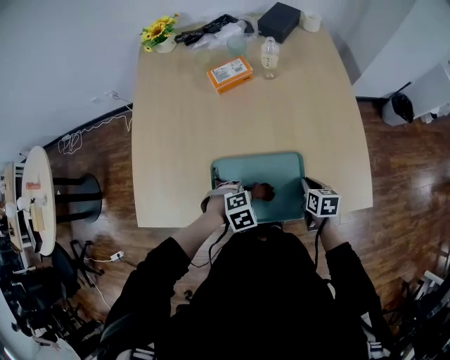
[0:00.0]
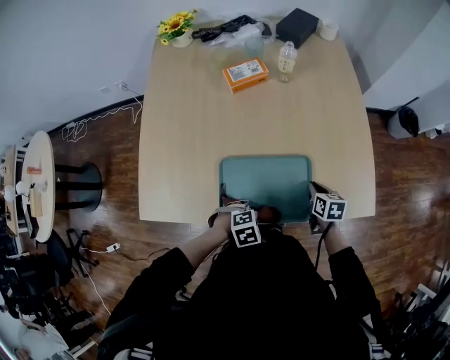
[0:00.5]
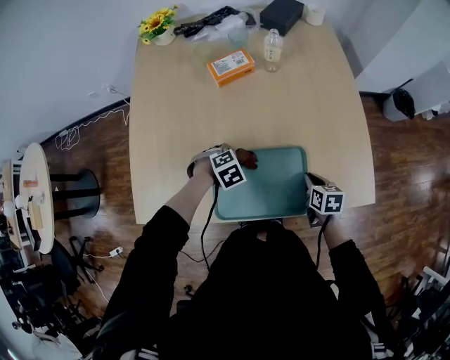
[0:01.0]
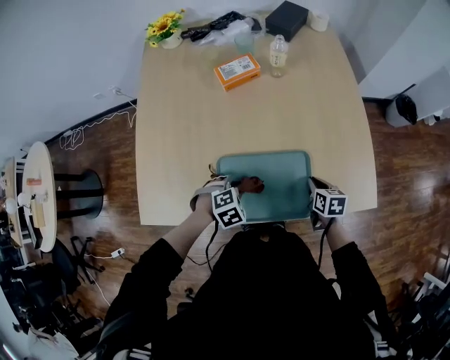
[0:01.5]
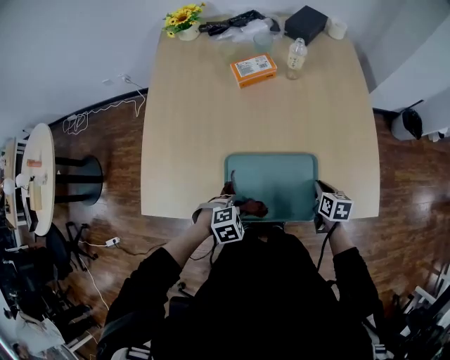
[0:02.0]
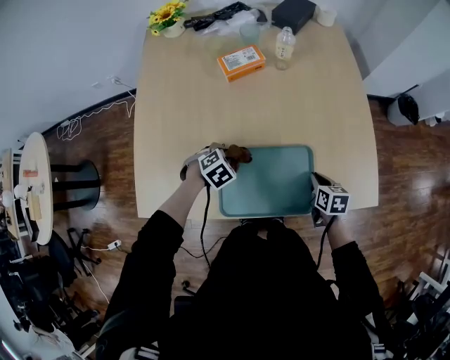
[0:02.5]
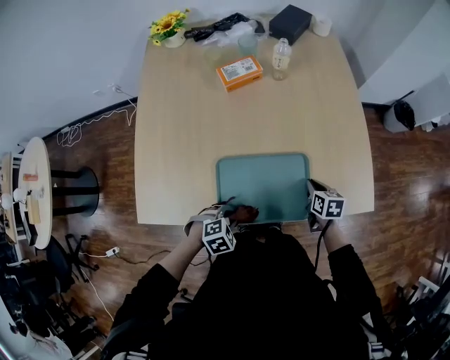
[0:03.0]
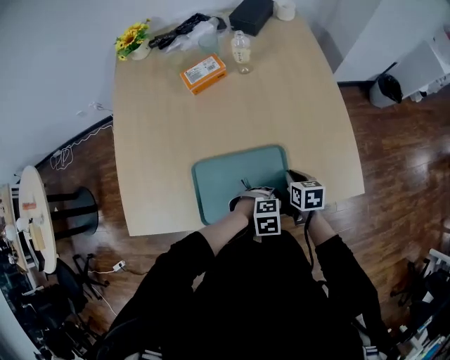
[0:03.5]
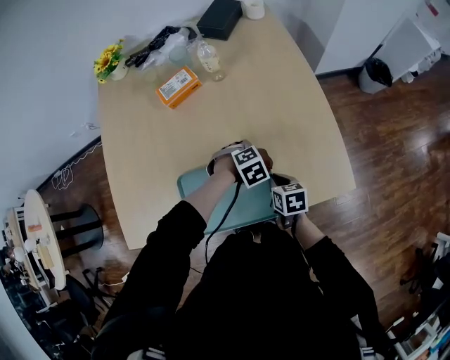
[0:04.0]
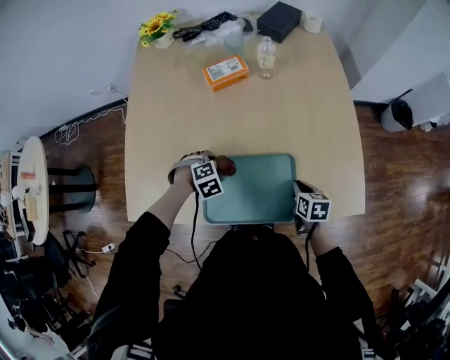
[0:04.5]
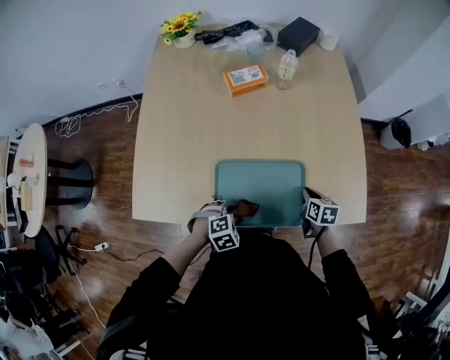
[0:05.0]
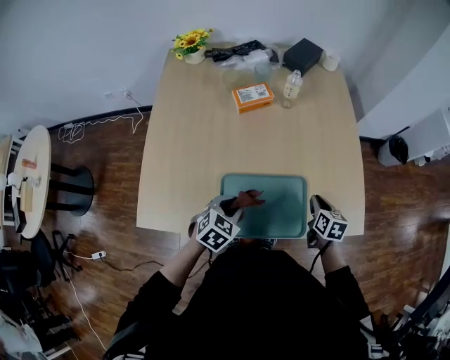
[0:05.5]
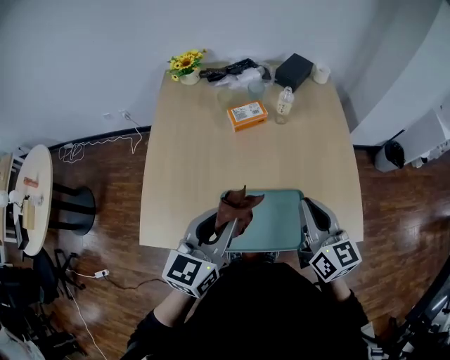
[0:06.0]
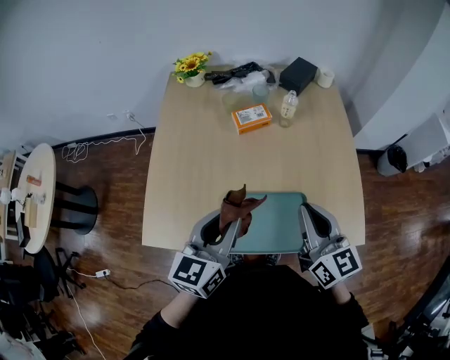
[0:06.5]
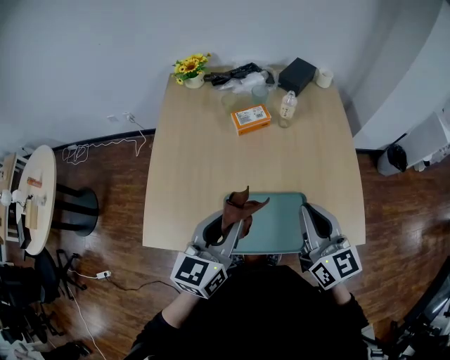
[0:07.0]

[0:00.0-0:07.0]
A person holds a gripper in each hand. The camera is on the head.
0:00.0 to 0:02.0: The left gripper moves about 10 cm.
0:02.0 to 0:03.5: The left gripper shifts by roughly 20 cm, and rotates roughly 20 degrees.
0:03.5 to 0:05.0: The left gripper ends up approximately 20 cm from where it was, and changes its angle by roughly 30 degrees.
0:05.0 to 0:07.0: Both grippers move upward, approximately 35 cm. The right gripper points its fingers roughly 50 degrees further upward. The left gripper tilts its fingers approximately 60 degrees upward.

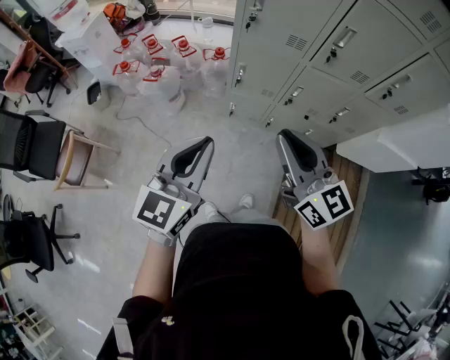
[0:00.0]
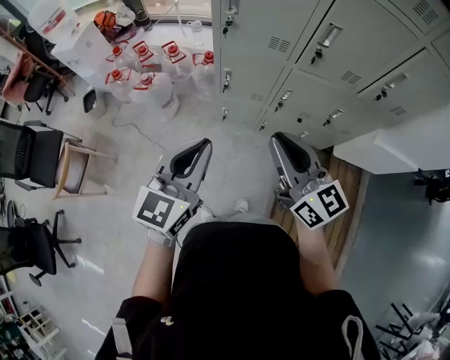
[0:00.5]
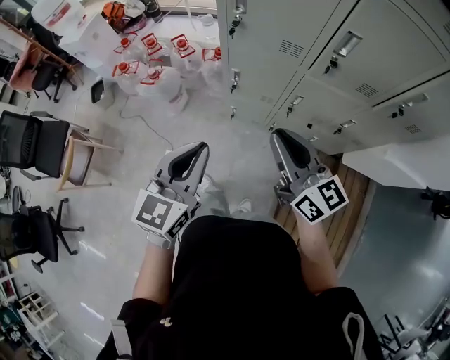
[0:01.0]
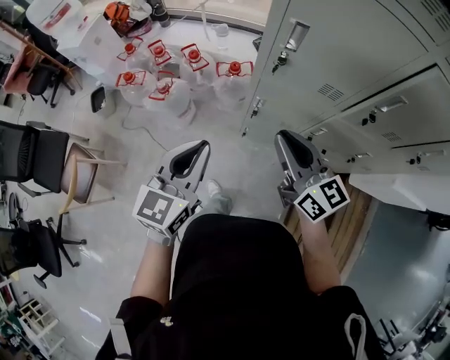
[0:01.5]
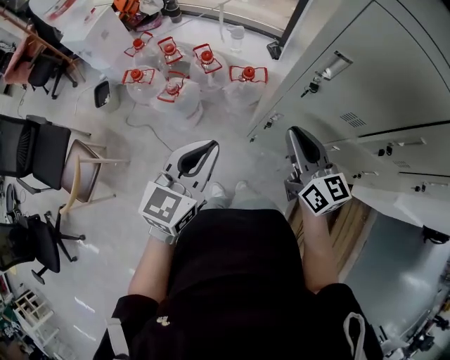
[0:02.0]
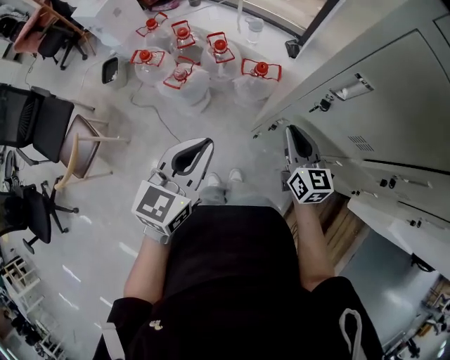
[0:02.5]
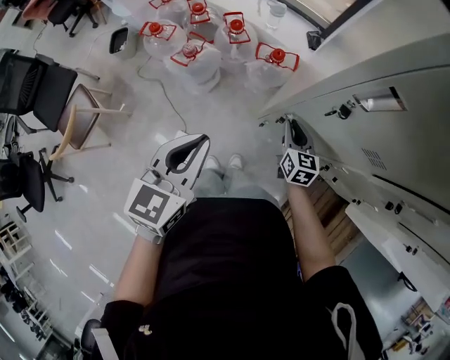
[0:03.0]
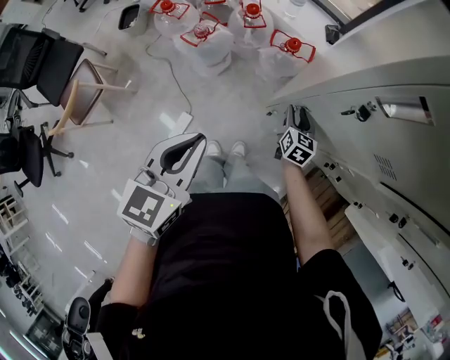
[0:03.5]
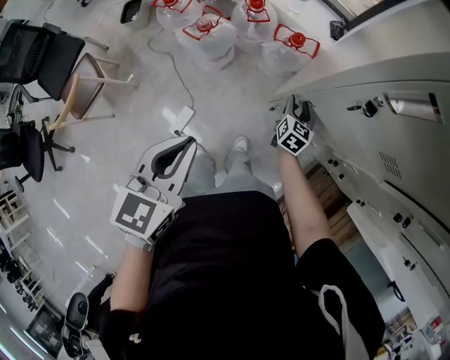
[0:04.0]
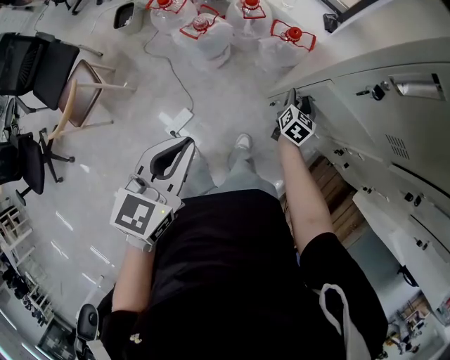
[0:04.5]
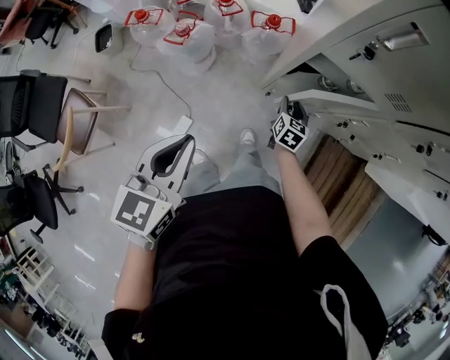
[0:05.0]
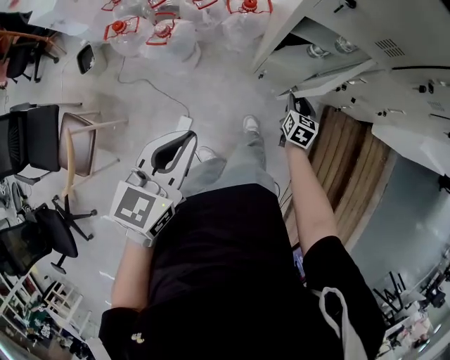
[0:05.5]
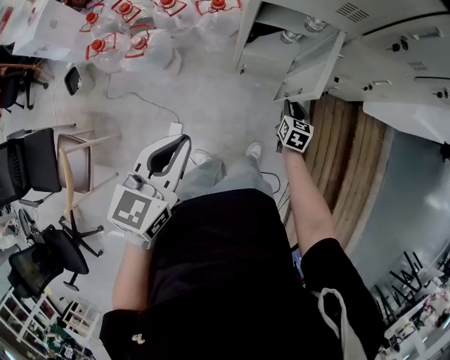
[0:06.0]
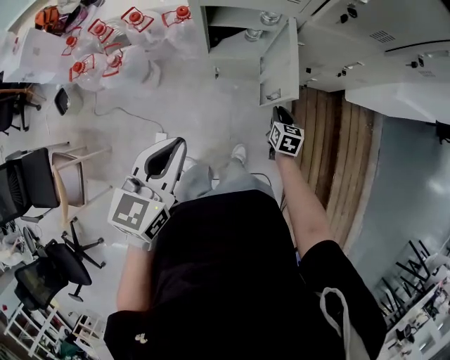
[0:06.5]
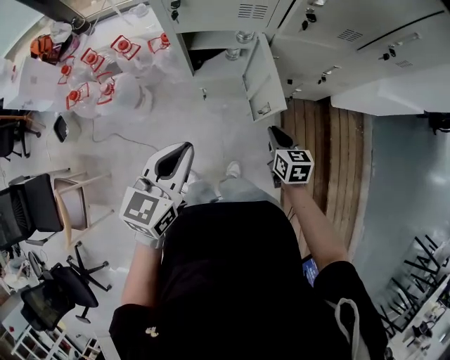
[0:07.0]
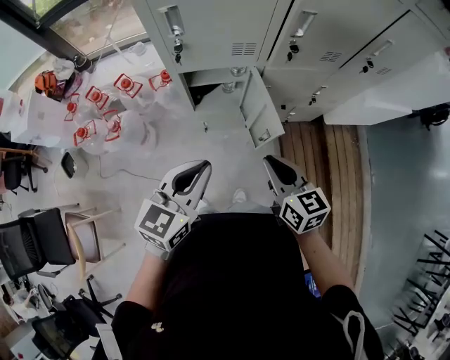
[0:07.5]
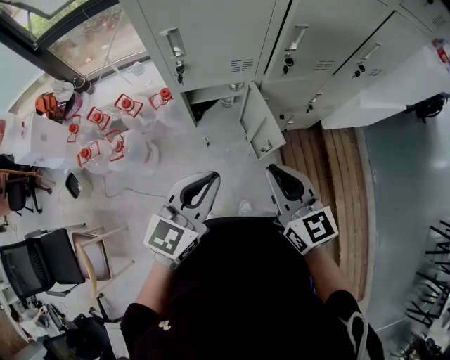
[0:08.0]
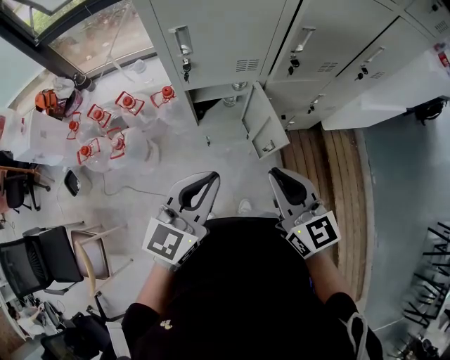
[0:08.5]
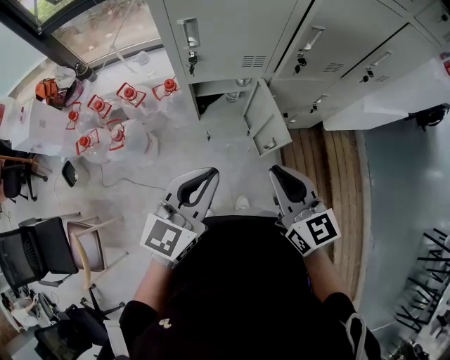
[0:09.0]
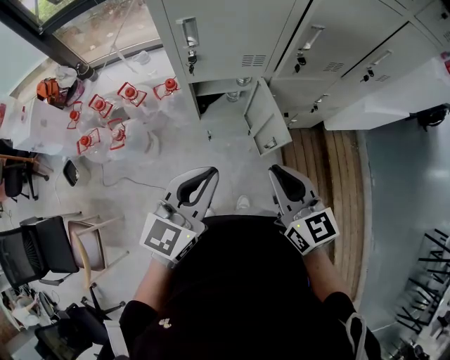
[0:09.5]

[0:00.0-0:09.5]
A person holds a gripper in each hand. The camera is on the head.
0:00.0 to 0:02.0: Both grippers travel together forward, some 30 cm.
0:02.0 to 0:04.0: The right gripper shifts about 35 cm downward, turns by approximately 30 degrees, and opens its fingers; the left gripper shifts roughly 5 cm downward, and rotates roughly 30 degrees.
0:04.0 to 0:05.5: The right gripper goes approximately 20 cm backward. Meanwhile the left gripper travels backward by approximately 10 cm, and changes its angle by approximately 30 degrees.
0:05.5 to 0:07.5: The right gripper travels upward and to the right by some 35 cm, swivels approximately 20 degrees, and closes up. The left gripper goes roughly 25 cm to the right, and rotates roughly 20 degrees.
0:07.5 to 0:09.5: The left gripper is displaced upward by approximately 5 cm; the right gripper heads upward, covering approximately 10 cm.

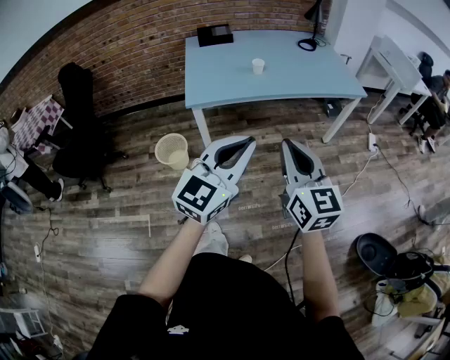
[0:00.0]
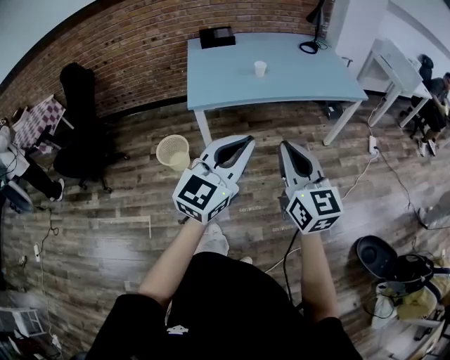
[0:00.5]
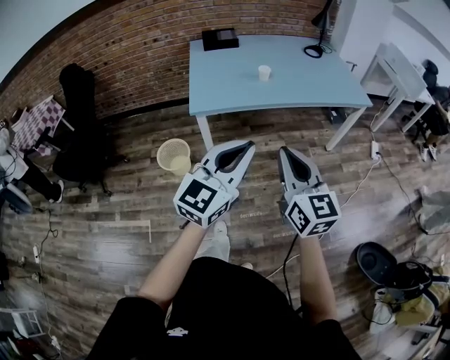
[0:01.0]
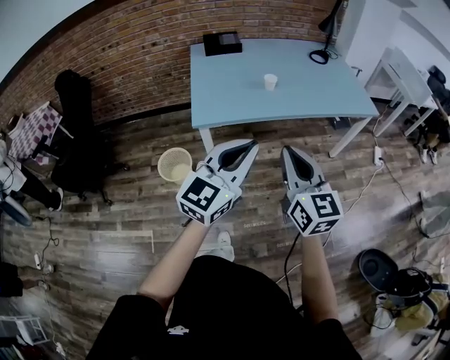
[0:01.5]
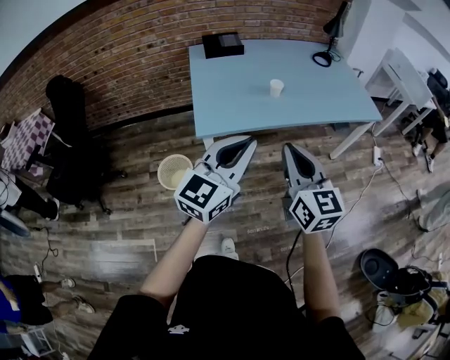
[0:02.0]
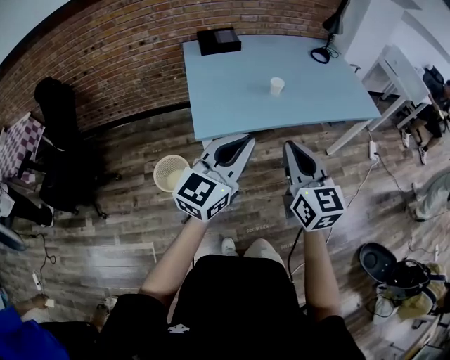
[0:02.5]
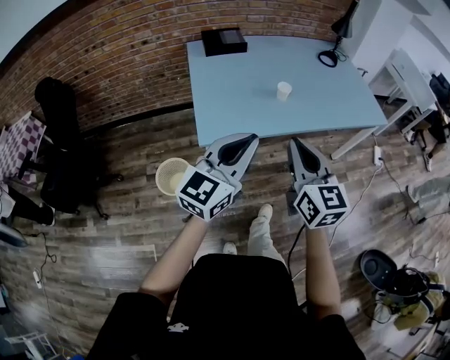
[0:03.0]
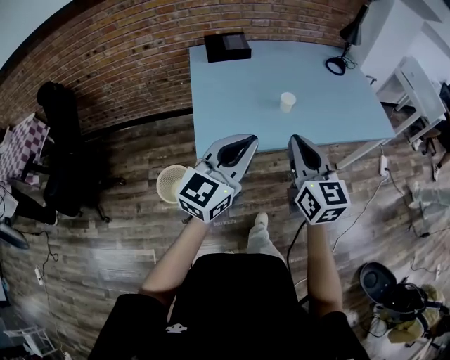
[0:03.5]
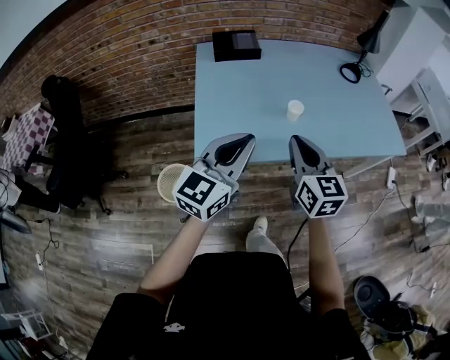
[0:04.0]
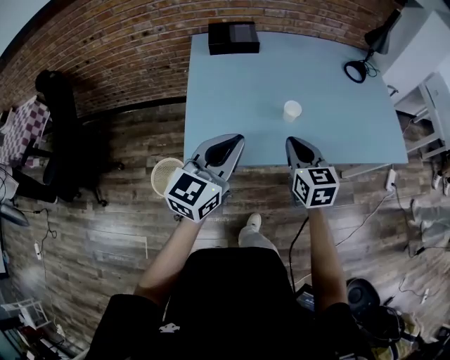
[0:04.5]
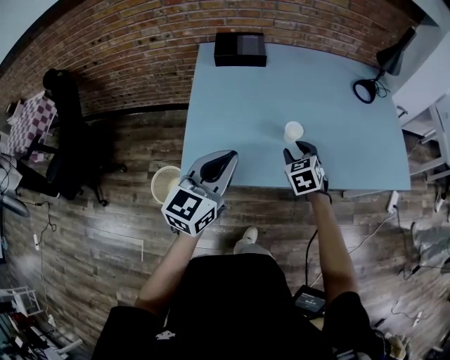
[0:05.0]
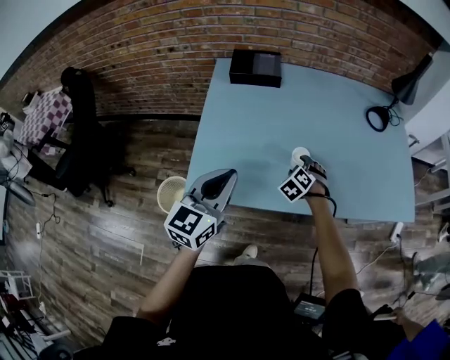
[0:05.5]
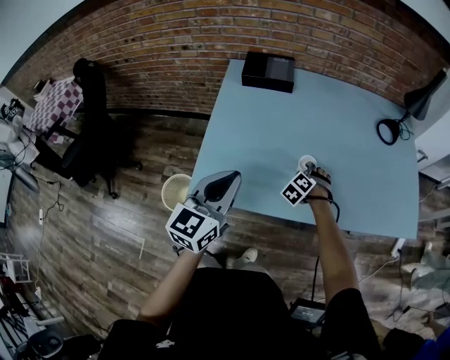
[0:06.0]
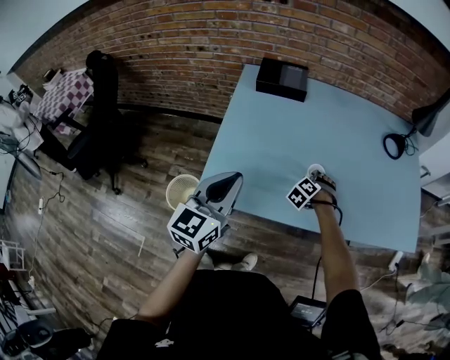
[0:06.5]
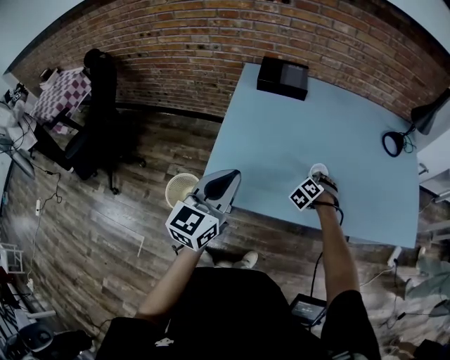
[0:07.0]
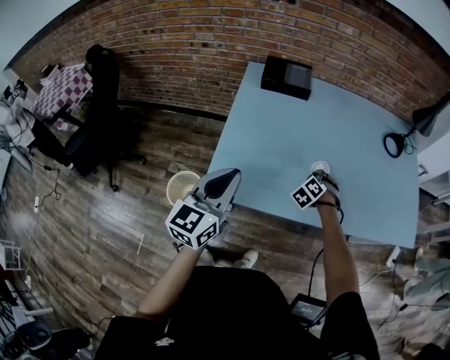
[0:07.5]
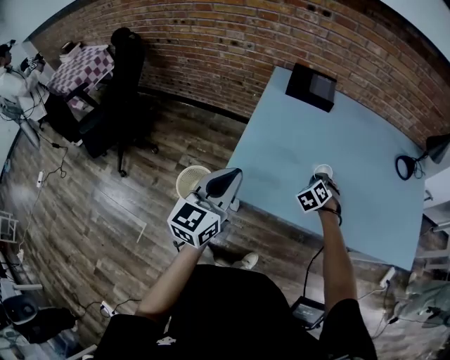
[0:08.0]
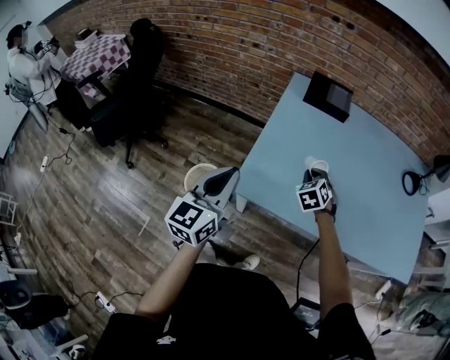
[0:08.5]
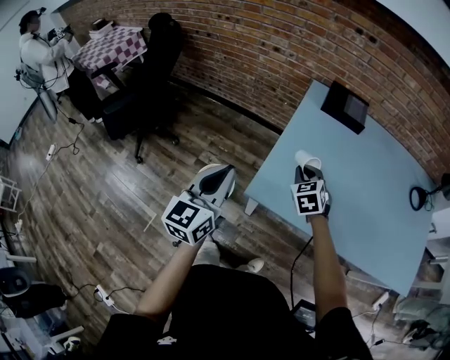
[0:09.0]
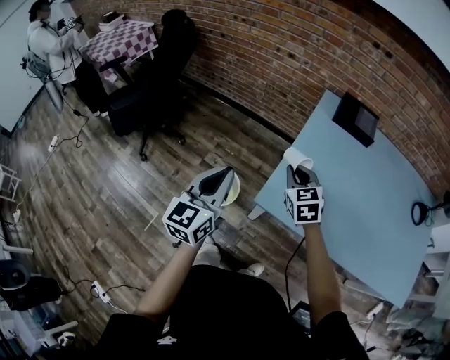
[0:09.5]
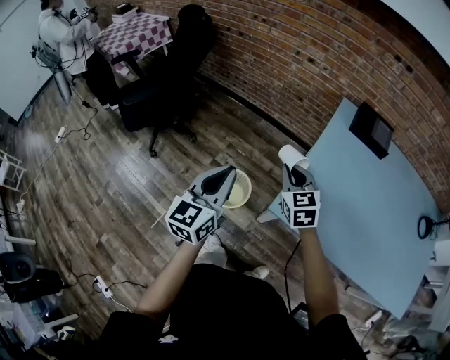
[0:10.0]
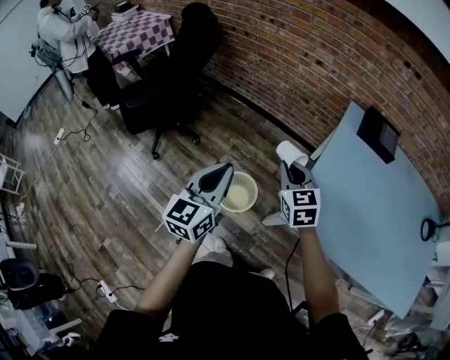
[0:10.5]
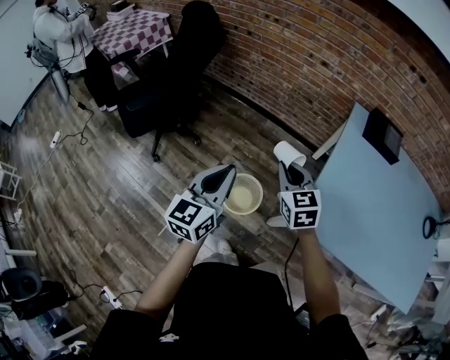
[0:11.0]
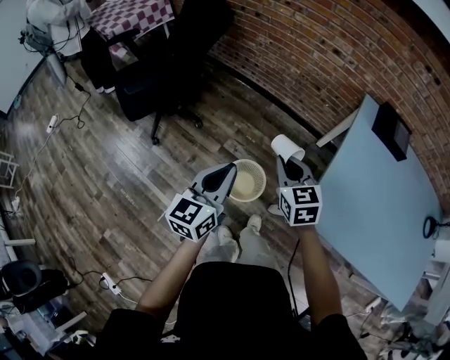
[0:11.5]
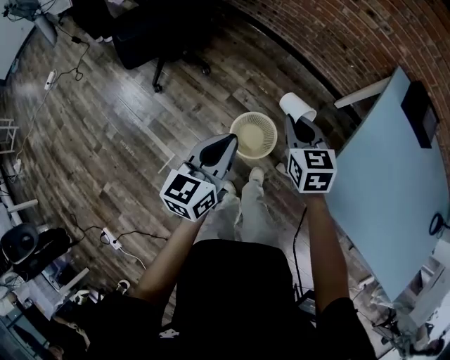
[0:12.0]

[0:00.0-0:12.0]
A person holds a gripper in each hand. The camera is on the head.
0:00.0 to 0:02.0: The grippers both shift forward and to the left by about 25 cm.
0:02.0 to 0:04.0: The grippers both shift forward by some 25 cm.
0:04.0 to 0:06.0: The left gripper travels forward by roughly 10 cm, and turns by about 20 degrees; the right gripper travels downward and forward by about 40 cm, tilts its fingers approximately 50 degrees downward, and opens its fingers.
0:06.0 to 0:08.0: The right gripper travels to the left and upward by some 10 cm, and closes. Meanwhile the left gripper moves to the left and backward, some 15 cm.
0:08.0 to 0:10.0: The left gripper shifts by about 25 cm. Meanwhile the right gripper changes place by some 40 cm, and changes its angle by approximately 50 degrees.
0:10.0 to 0:12.0: The left gripper goes some 20 cm to the left and downward. Meanwhile the right gripper goes some 20 cm to the left, downward and forward.
